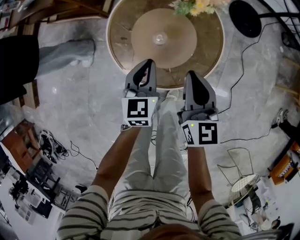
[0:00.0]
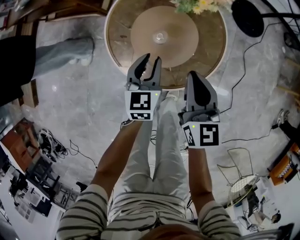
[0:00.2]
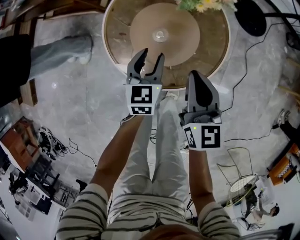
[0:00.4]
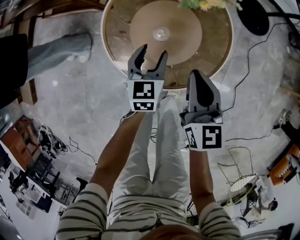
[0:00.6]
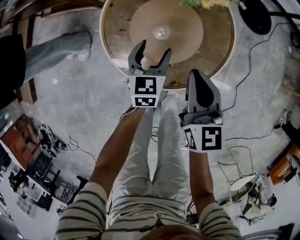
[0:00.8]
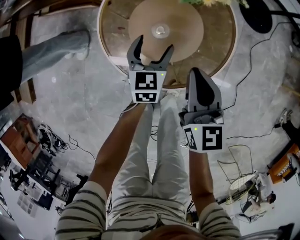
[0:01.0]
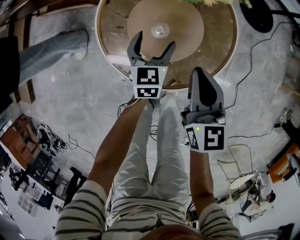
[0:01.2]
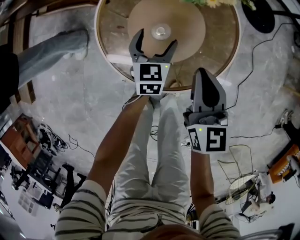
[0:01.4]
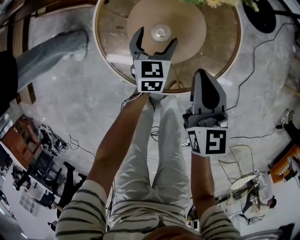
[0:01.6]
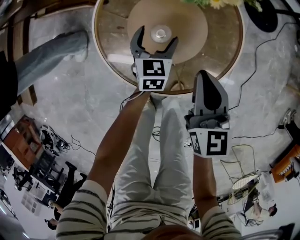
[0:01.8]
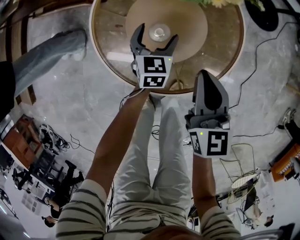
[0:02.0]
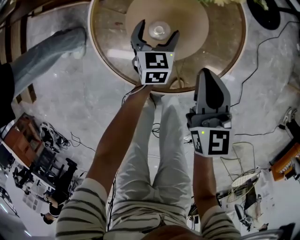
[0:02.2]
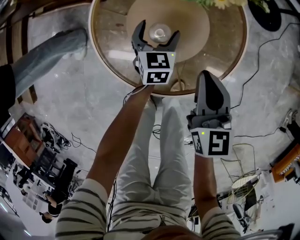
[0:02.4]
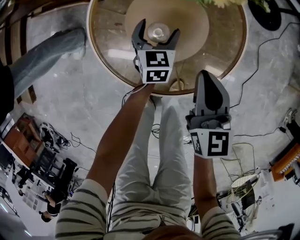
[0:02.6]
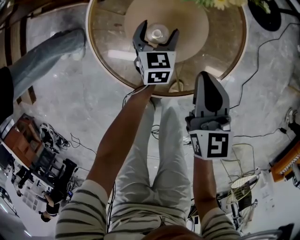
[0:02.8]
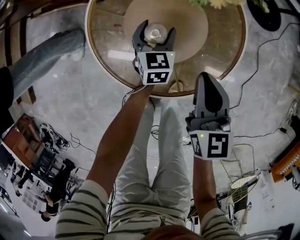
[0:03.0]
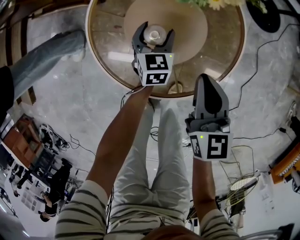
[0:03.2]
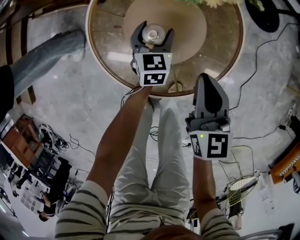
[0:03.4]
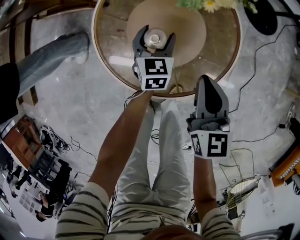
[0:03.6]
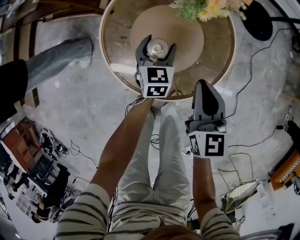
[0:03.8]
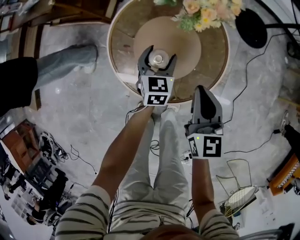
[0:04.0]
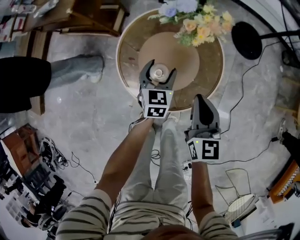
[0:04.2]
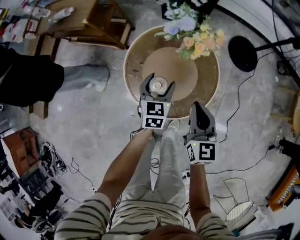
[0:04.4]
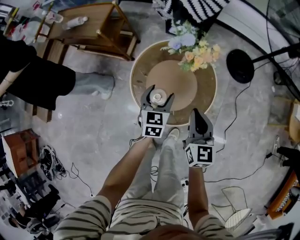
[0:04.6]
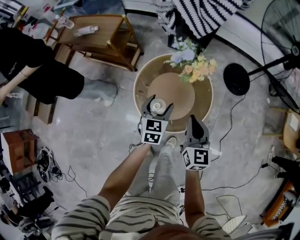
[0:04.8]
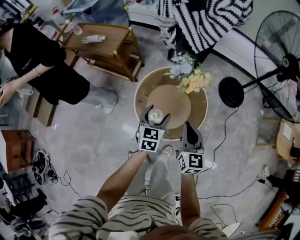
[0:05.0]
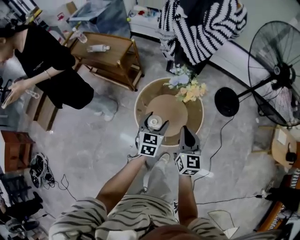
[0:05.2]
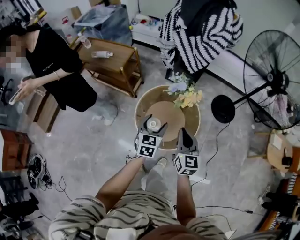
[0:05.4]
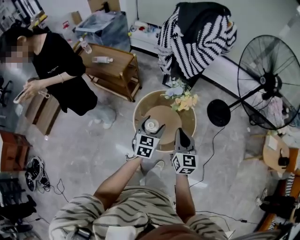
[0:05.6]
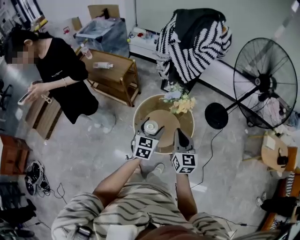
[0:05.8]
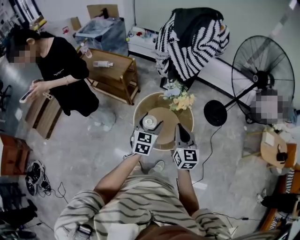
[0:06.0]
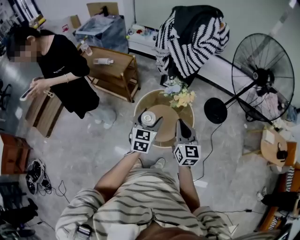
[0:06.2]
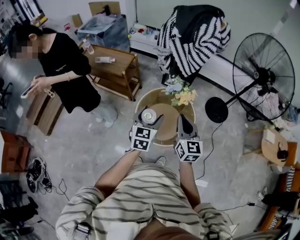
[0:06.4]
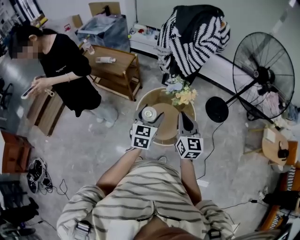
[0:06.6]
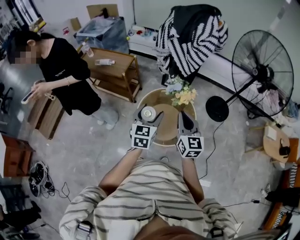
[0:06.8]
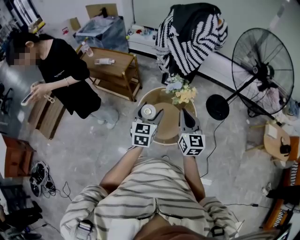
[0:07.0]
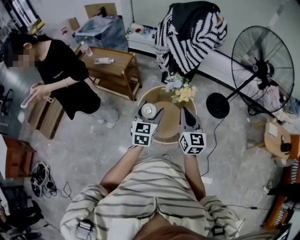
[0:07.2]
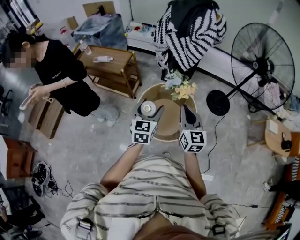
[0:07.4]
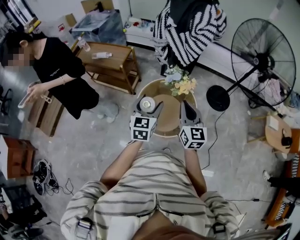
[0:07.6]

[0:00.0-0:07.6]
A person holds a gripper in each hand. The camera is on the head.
0:00.0 to 0:01.6: The right gripper shifts roughly 10 cm downward; the left gripper travels downward and forward by some 20 cm, and opens its fingers.
0:01.6 to 0:03.0: The left gripper shifts by approximately 5 cm.
0:03.0 to 0:04.6: The two grippers go some 25 cm upward.
0:04.6 to 0:06.0: The grippers both shift upward by approximately 25 cm.
0:06.0 to 0:07.6: The grippers move only a little.

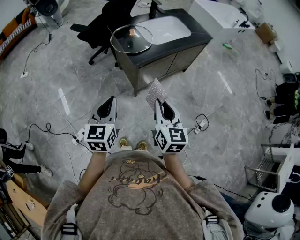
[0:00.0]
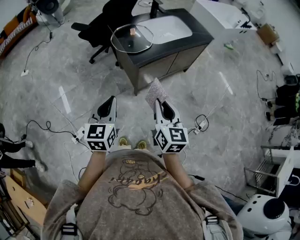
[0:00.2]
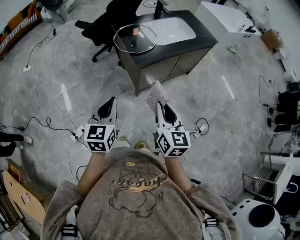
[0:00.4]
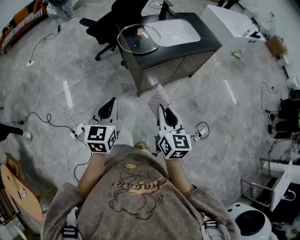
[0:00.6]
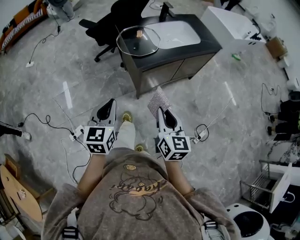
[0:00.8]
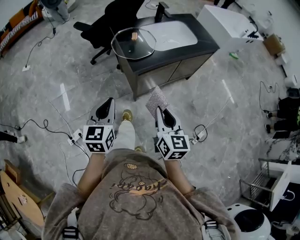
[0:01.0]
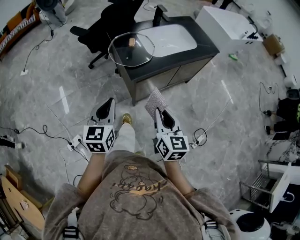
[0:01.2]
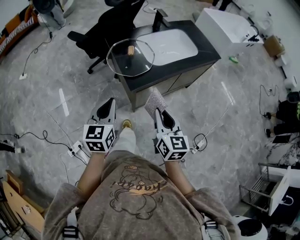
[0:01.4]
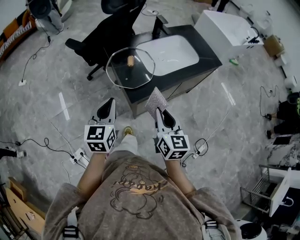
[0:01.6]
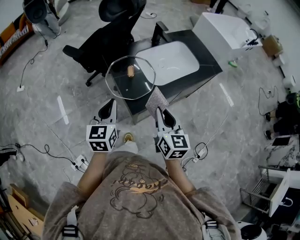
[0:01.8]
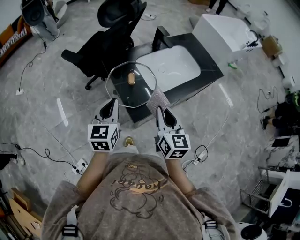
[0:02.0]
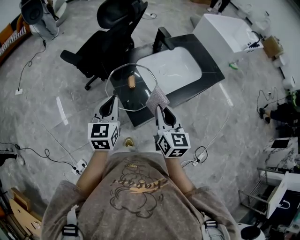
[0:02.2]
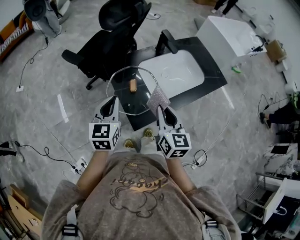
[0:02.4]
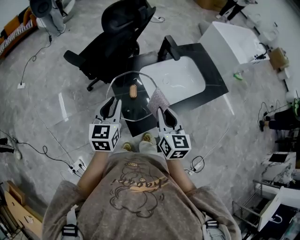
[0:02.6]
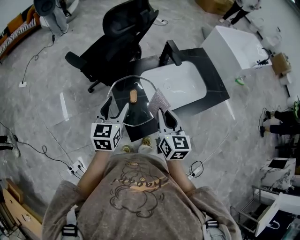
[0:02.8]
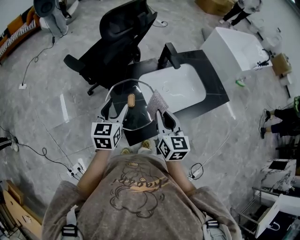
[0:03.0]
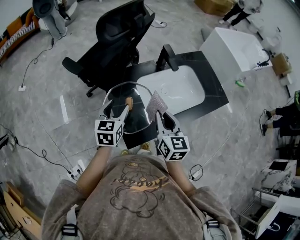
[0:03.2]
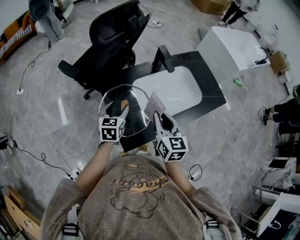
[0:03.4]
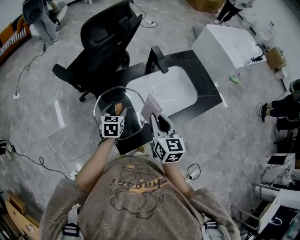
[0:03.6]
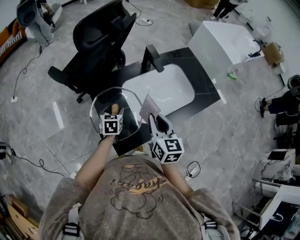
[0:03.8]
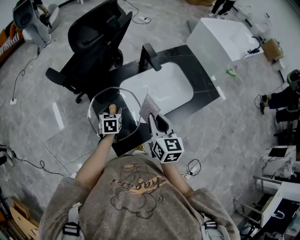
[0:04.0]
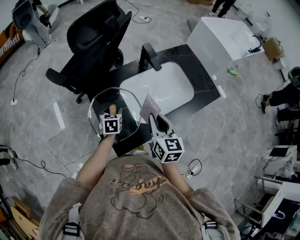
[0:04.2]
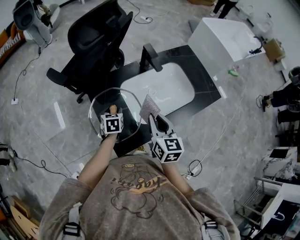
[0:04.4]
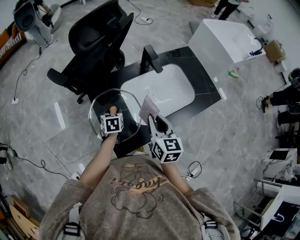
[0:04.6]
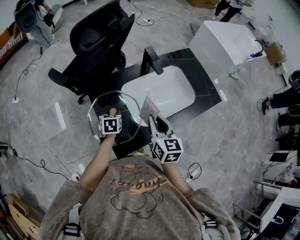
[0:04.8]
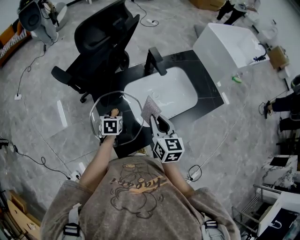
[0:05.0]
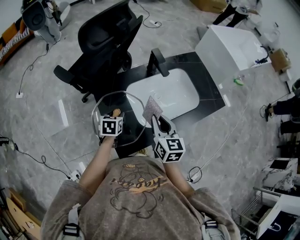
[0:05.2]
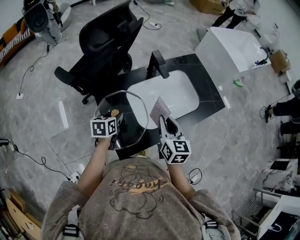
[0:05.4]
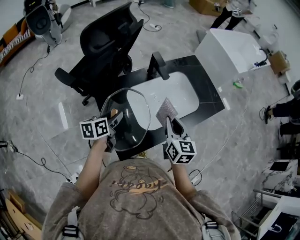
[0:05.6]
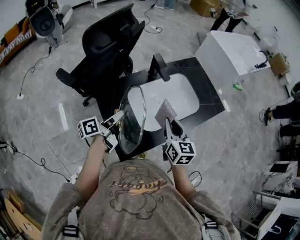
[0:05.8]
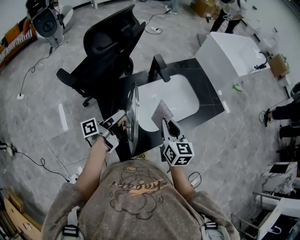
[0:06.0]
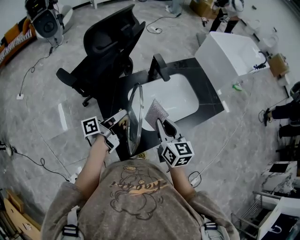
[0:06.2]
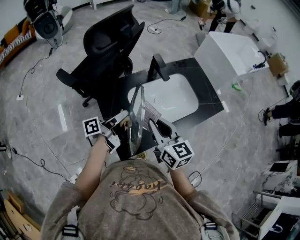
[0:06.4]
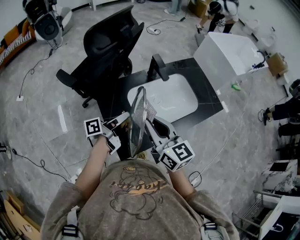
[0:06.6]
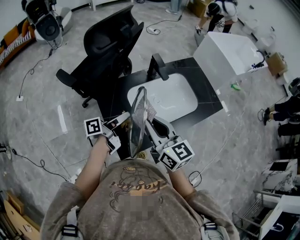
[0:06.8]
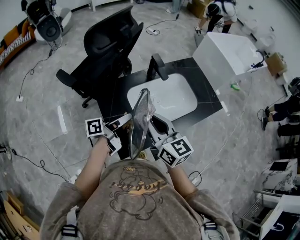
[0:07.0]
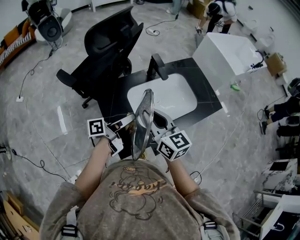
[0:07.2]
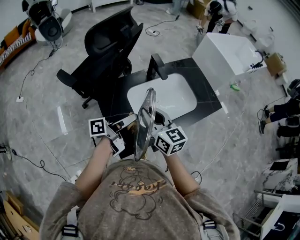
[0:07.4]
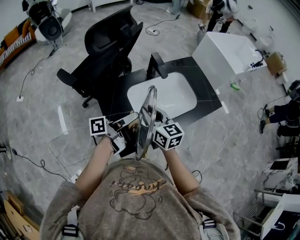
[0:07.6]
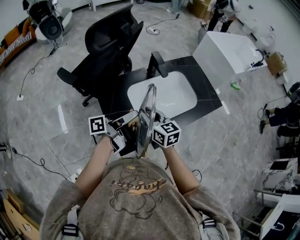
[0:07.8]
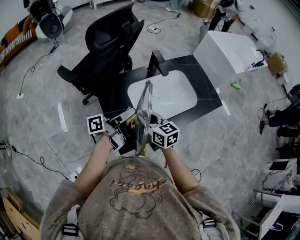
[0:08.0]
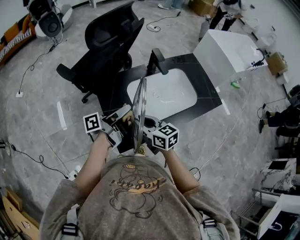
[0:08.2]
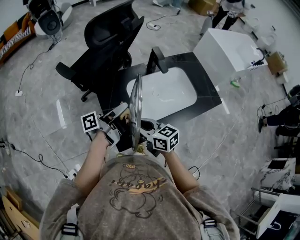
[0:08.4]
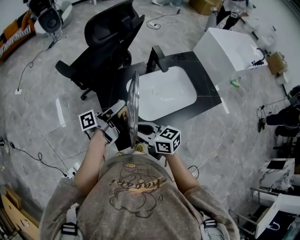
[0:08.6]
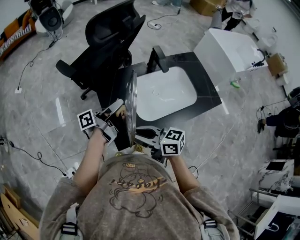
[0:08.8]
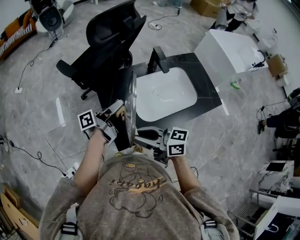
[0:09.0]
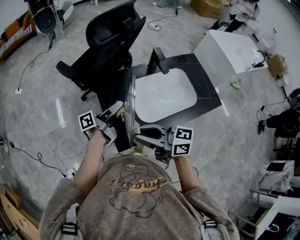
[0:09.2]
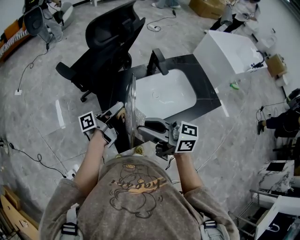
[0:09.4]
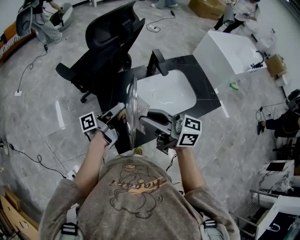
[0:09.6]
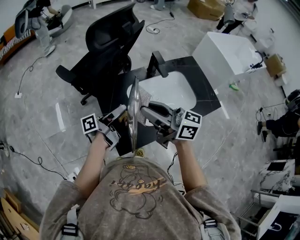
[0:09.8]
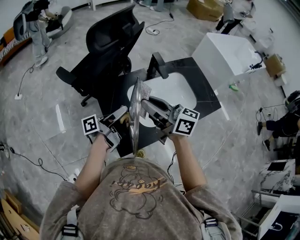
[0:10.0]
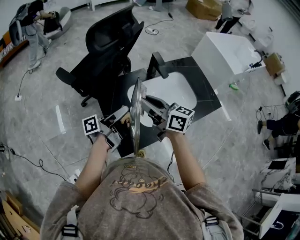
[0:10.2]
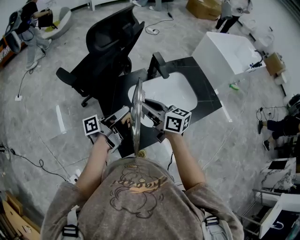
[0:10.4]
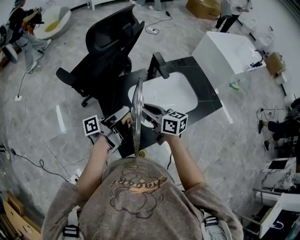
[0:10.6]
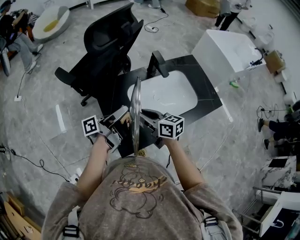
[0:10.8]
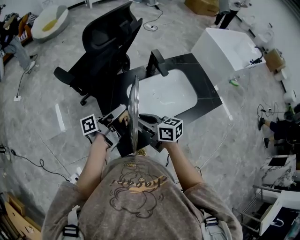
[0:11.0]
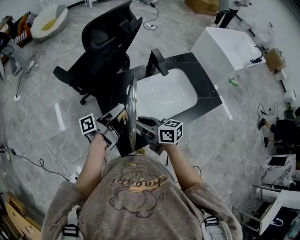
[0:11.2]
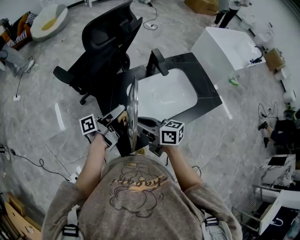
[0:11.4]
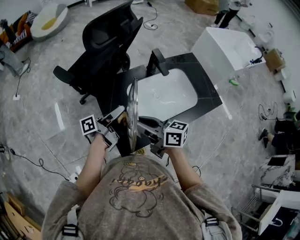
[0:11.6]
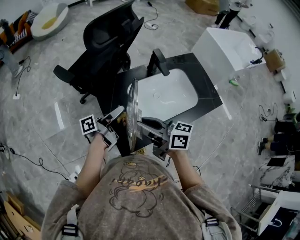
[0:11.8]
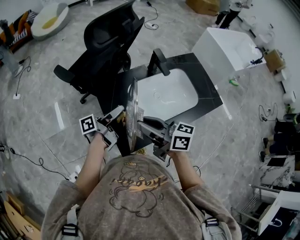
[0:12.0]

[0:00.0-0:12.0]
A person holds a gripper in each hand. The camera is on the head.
0:00.0 to 0:01.6: Both grippers move forward, approximately 25 cm.
0:01.6 to 0:03.0: The two grippers go roughly 25 cm forward. The left gripper opens.
0:03.0 to 0:04.4: The right gripper shifts some 5 cm to the right. Meanwhile the left gripper moves downward and forward, roughly 20 cm, and swivels approximately 30 degrees.
0:04.4 to 0:06.0: The left gripper travels upward by approximately 15 cm, and points its fingers roughly 50 degrees further upward.
0:06.0 to 0:07.6: The left gripper is displaced to the right by some 5 cm; the right gripper heads to the left, covering some 10 cm.
0:07.6 to 0:09.0: The right gripper changes place by about 15 cm, and turns by roughly 50 degrees, while the left gripper moves approximately 5 cm.
0:09.0 to 0:10.4: The right gripper travels forward by about 15 cm, and rotates roughly 20 degrees.
0:10.4 to 0:12.0: The right gripper moves backward, roughly 10 cm, and goes downward and returns, approximately 10 cm each way.

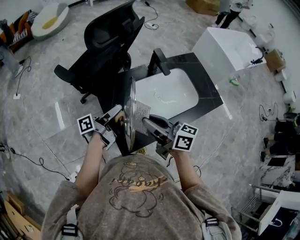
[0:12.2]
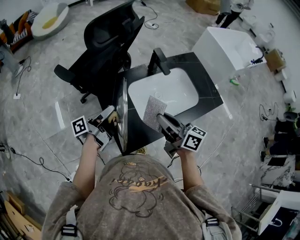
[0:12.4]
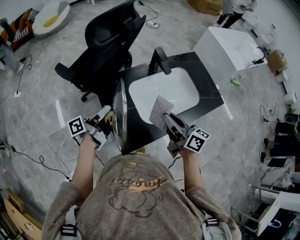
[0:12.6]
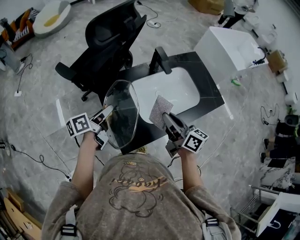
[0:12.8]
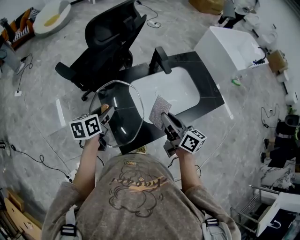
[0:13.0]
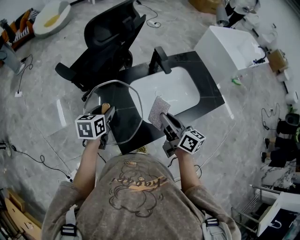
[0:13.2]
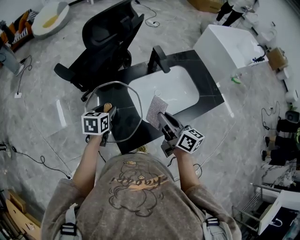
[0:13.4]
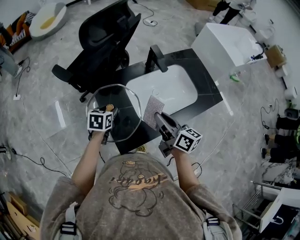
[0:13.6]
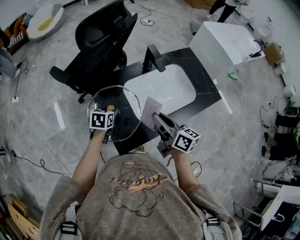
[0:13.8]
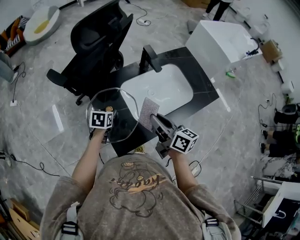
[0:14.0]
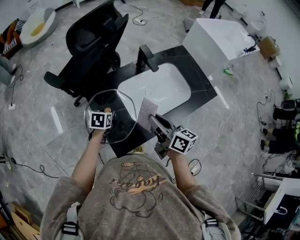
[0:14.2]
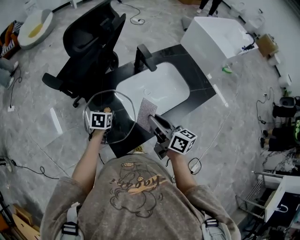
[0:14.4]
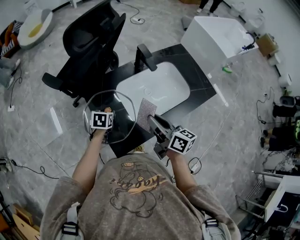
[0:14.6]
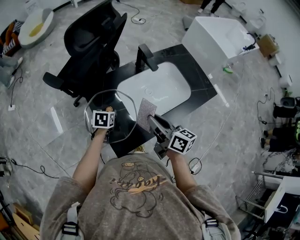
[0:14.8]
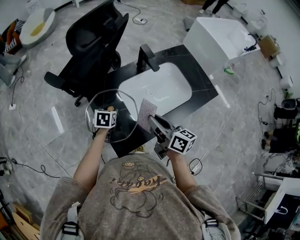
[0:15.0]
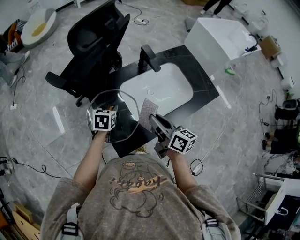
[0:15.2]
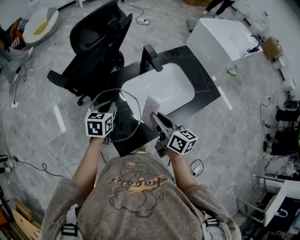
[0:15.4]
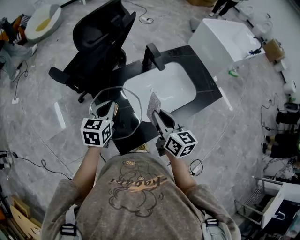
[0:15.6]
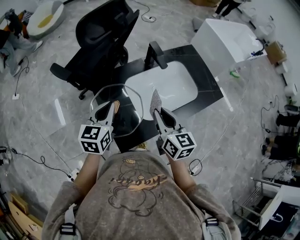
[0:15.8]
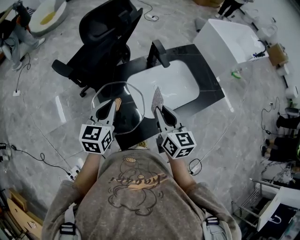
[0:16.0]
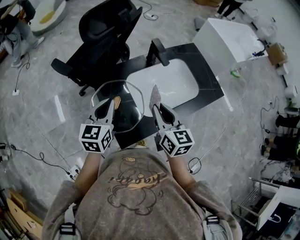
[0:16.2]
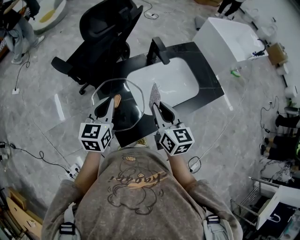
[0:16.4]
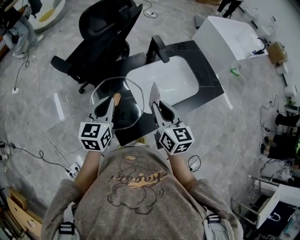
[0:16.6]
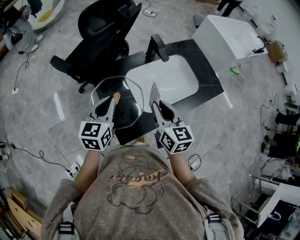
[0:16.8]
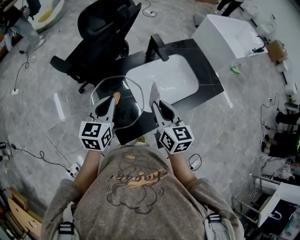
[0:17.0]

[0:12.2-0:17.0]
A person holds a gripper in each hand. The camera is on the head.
0:12.2 to 0:13.8: The left gripper moves downward, roughly 15 cm, and angles its fingers downward, by about 60 degrees. Meanwhile the right gripper is displaced to the right and downward by about 10 cm, and swivels some 20 degrees.
0:13.8 to 0:15.4: The left gripper travels upward by approximately 10 cm, and closes.
0:15.4 to 0:17.0: The left gripper moves upward and backward, roughly 10 cm, while the right gripper turns by approximately 20 degrees.
